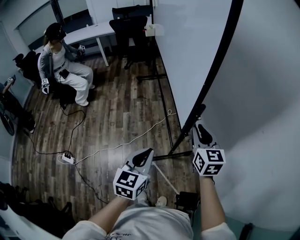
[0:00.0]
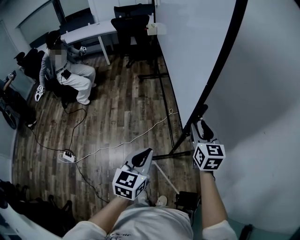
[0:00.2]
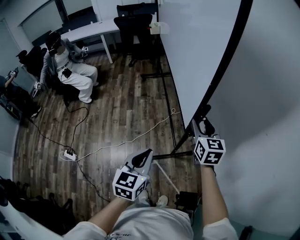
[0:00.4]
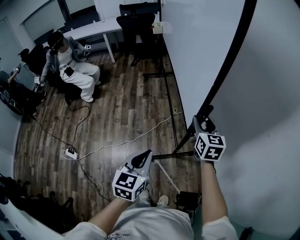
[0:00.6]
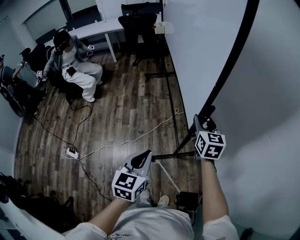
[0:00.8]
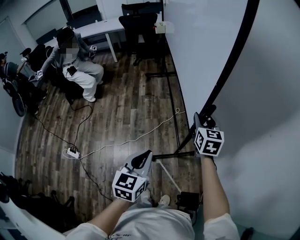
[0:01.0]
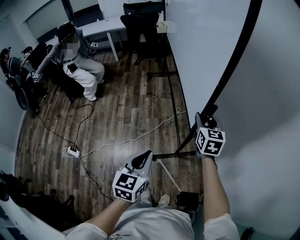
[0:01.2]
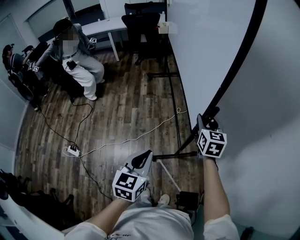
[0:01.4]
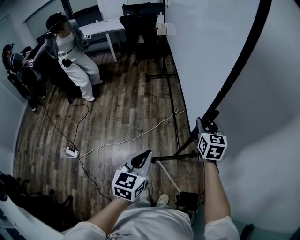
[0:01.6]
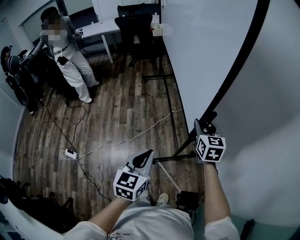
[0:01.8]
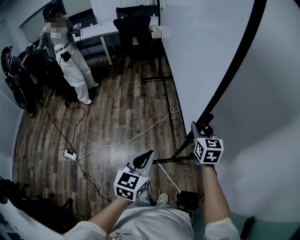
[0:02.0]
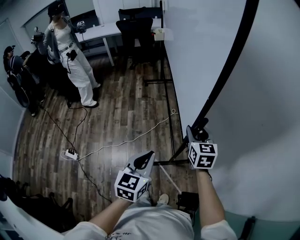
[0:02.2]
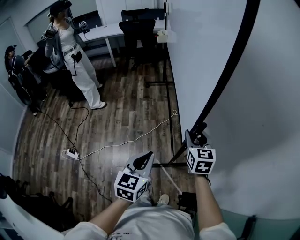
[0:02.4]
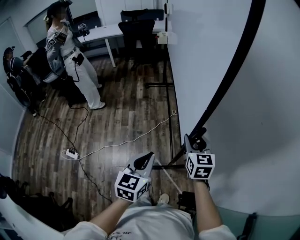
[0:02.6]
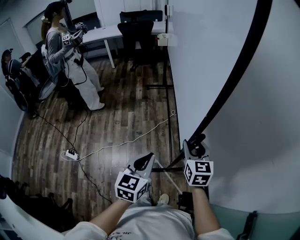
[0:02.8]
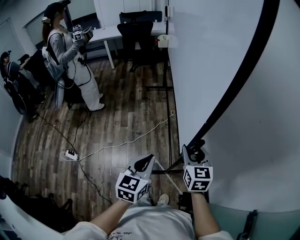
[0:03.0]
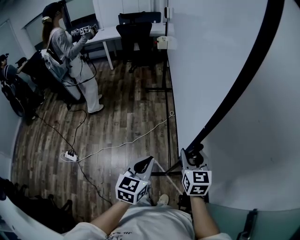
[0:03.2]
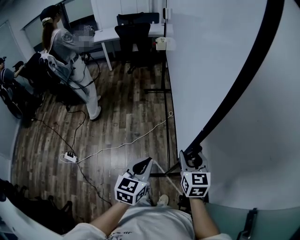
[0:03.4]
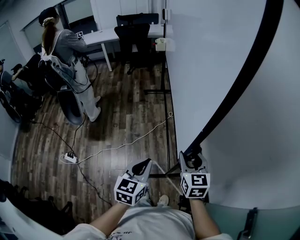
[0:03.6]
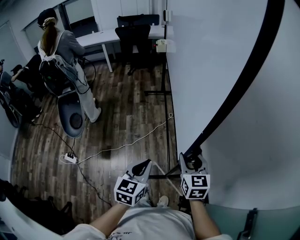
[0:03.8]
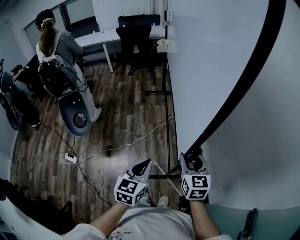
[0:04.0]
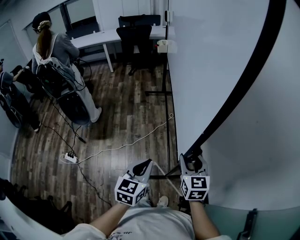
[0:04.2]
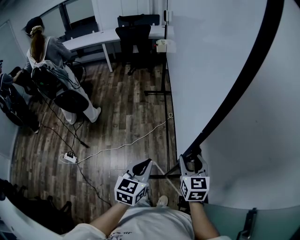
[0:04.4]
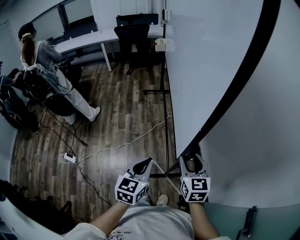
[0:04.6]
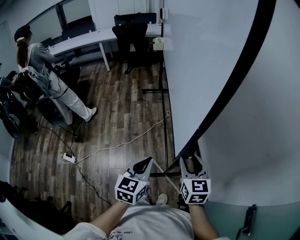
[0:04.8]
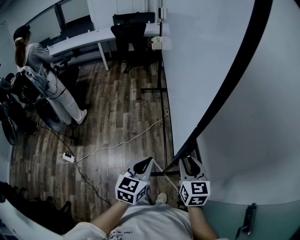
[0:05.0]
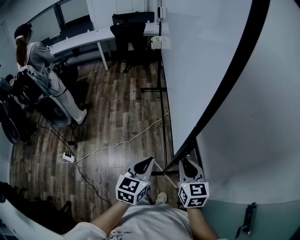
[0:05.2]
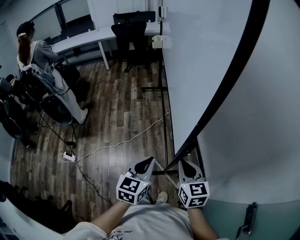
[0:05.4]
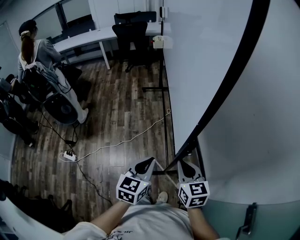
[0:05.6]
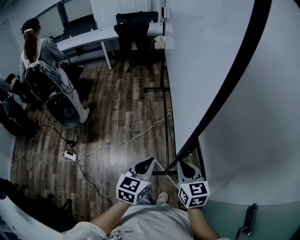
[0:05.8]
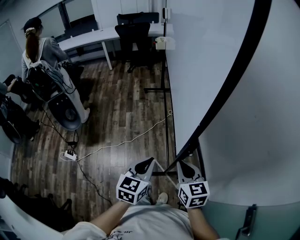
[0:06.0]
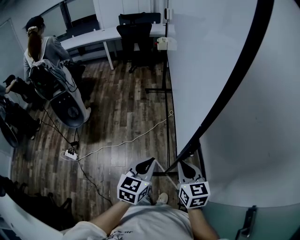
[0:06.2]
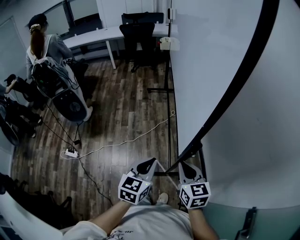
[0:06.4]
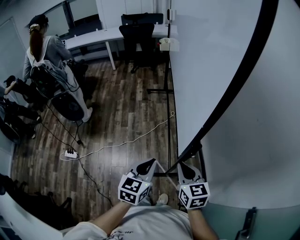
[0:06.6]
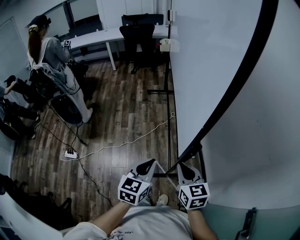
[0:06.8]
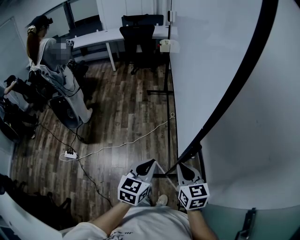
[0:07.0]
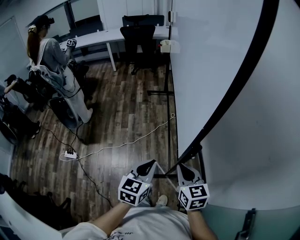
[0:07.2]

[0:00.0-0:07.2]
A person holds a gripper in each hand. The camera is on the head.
0.0 to 1.4 s: The right gripper moves forward, about 5 cm, and opens.
1.4 to 2.8 s: The right gripper is displaced backward by some 20 cm. Meanwhile the left gripper is displaced backward by roughly 10 cm.
2.8 to 4.4 s: The right gripper goes approximately 5 cm backward.
4.4 to 5.8 s: The right gripper moves backward, approximately 5 cm, and closes.
5.8 to 7.2 s: The two grippers keep their place.

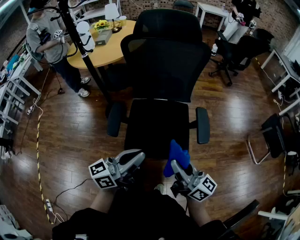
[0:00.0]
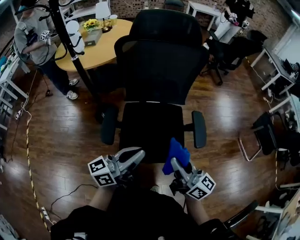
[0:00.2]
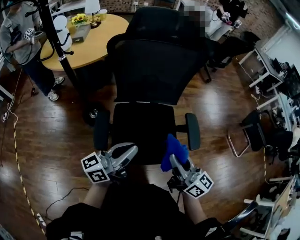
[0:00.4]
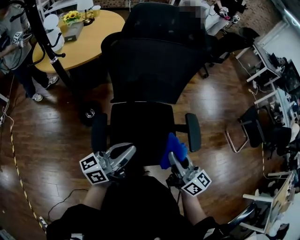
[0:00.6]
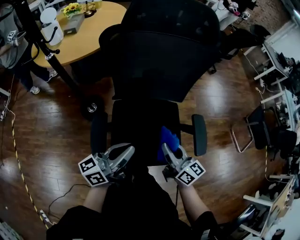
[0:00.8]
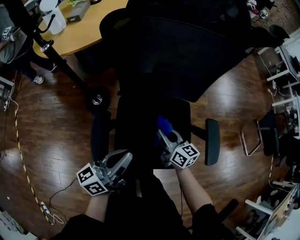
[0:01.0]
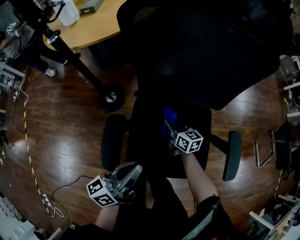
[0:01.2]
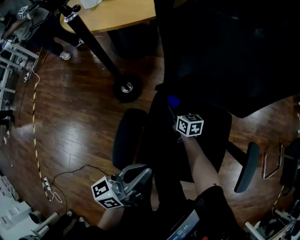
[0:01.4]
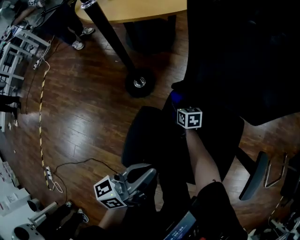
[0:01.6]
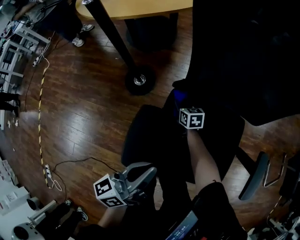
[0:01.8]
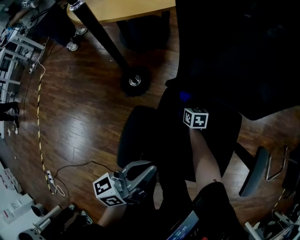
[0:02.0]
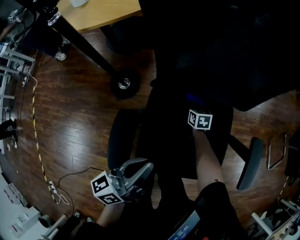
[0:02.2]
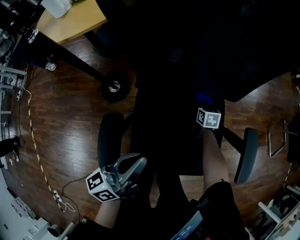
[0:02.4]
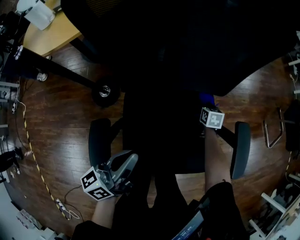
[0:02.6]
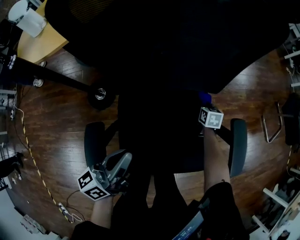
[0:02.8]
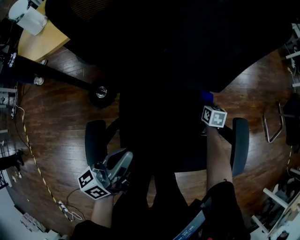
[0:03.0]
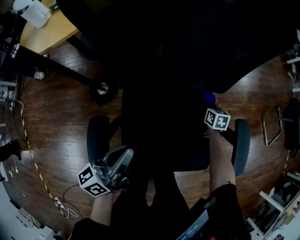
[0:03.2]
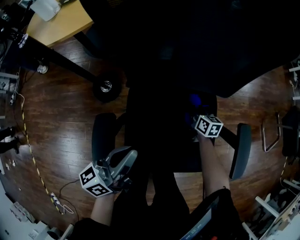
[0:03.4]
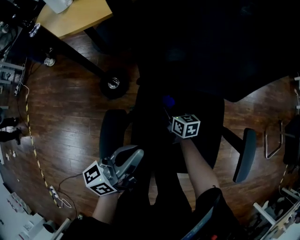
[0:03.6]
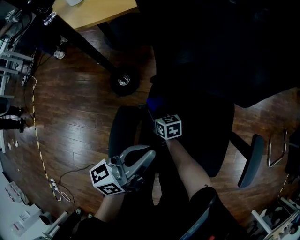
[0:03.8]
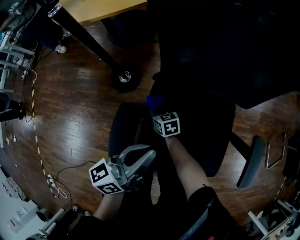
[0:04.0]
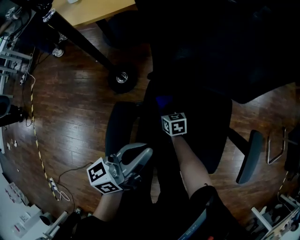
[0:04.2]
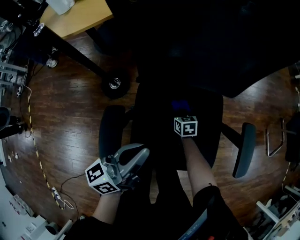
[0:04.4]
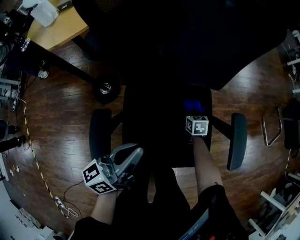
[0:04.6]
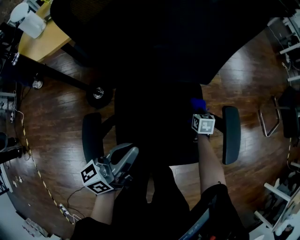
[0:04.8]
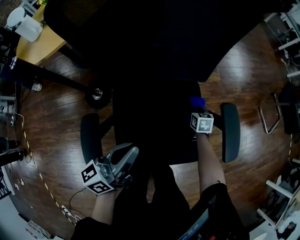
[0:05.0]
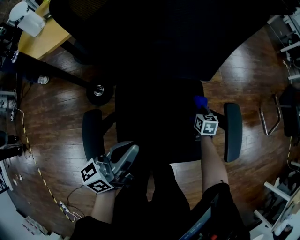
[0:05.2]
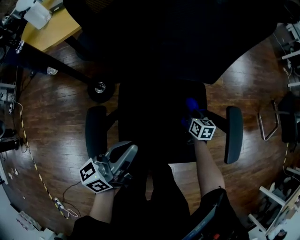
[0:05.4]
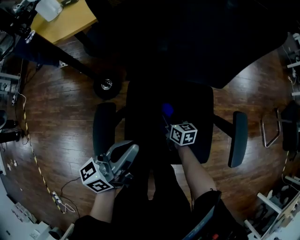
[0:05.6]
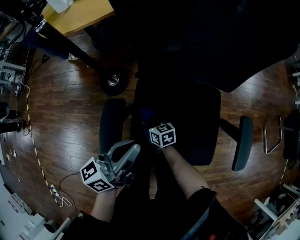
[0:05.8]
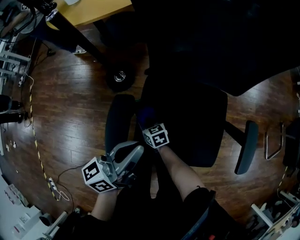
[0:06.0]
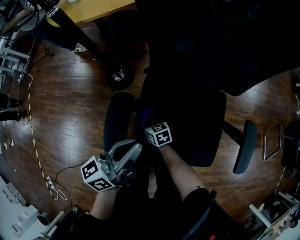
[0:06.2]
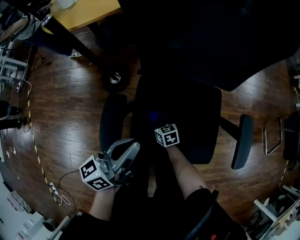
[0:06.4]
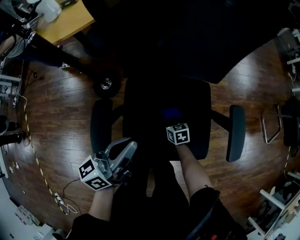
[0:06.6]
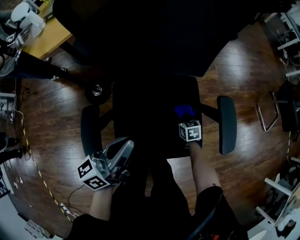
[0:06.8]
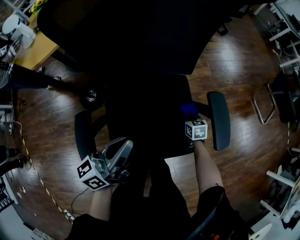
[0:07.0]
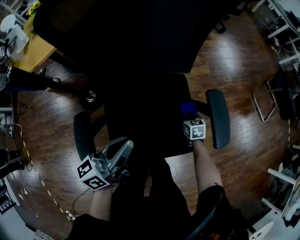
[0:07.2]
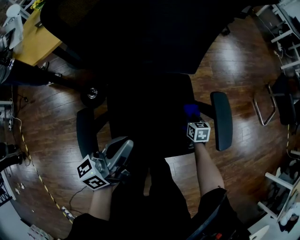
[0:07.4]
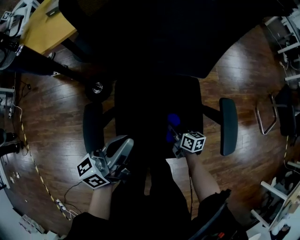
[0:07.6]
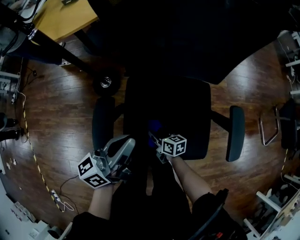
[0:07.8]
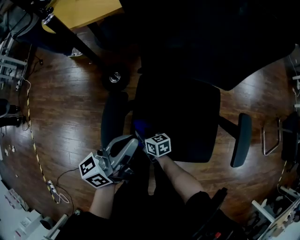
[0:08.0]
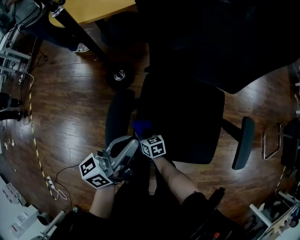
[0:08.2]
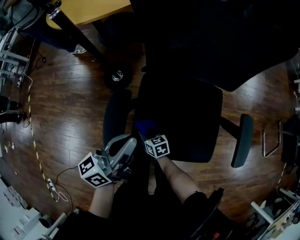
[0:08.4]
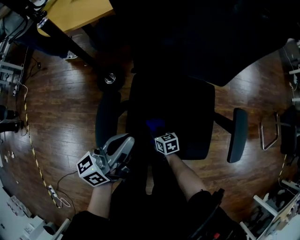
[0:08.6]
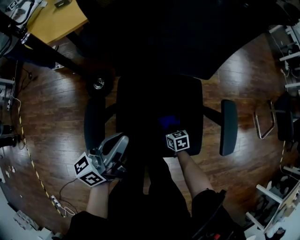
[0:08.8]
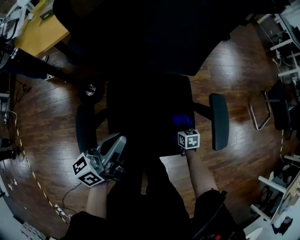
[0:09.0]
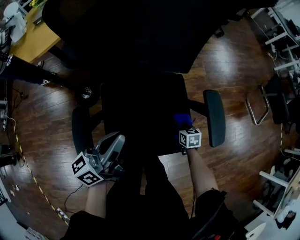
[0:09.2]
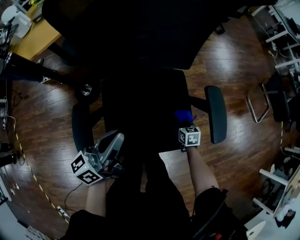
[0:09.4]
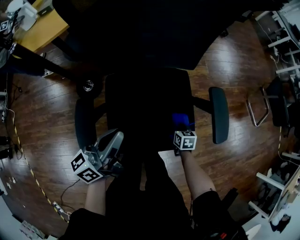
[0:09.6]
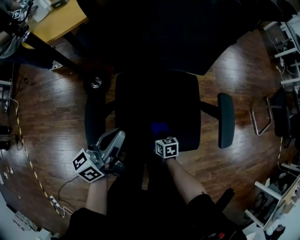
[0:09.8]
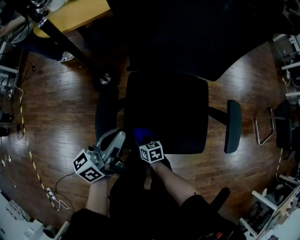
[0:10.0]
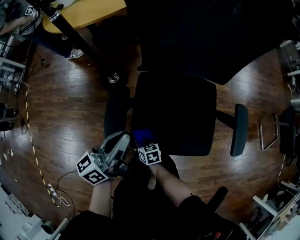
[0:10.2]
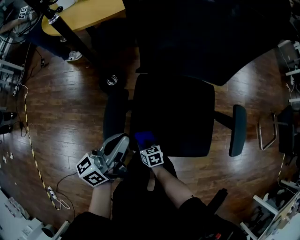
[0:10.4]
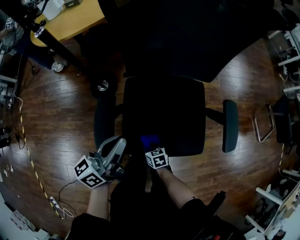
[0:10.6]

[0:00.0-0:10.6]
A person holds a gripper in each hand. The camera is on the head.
0.0 to 1.6 s: The right gripper shifts by approximately 70 cm, and points its fingers some 50 degrees further downward. Meanwhile the left gripper shifts by roughly 30 cm, and swivels approximately 30 degrees.
1.6 to 3.0 s: The right gripper changes place by about 40 cm, and rotates some 40 degrees, while the left gripper ends up approximately 10 cm from where it was.
3.0 to 4.6 s: The right gripper goes approximately 10 cm backward, and travels to the left and back again, about 40 cm each way.
4.6 to 6.0 s: The left gripper moves roughly 5 cm; the right gripper moves about 35 cm, and changes its angle by roughly 30 degrees.
6.0 to 7.6 s: The right gripper ends up approximately 30 cm from where it was, and rotates roughly 40 degrees.
7.6 to 9.0 s: The left gripper moves about 10 cm to the left and comes back, while the right gripper heads downward, covering approximately 5 cm, reaches some 30 cm to the left, then returns, and rotates about 30 degrees.
9.0 to 10.6 s: The left gripper ends up about 10 cm from where it was. Meanwhile the right gripper shifts by about 25 cm.

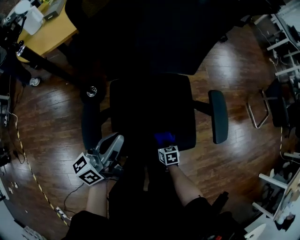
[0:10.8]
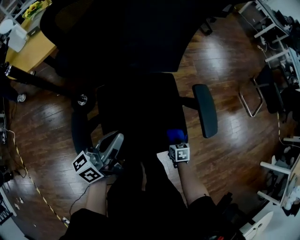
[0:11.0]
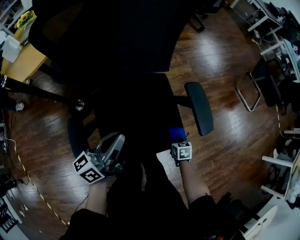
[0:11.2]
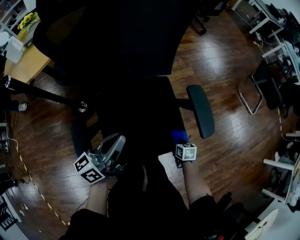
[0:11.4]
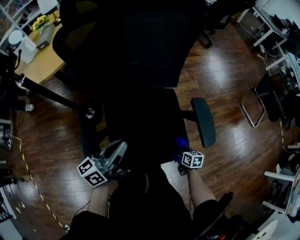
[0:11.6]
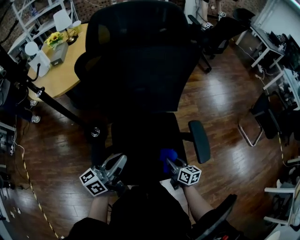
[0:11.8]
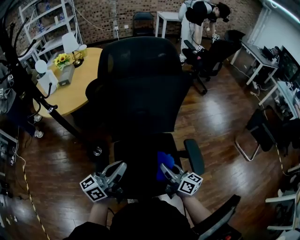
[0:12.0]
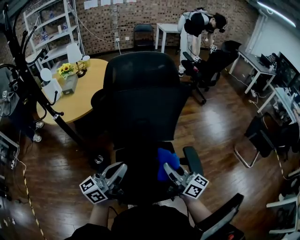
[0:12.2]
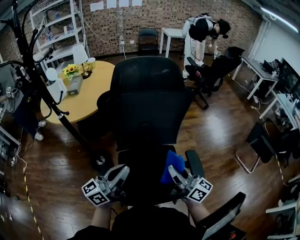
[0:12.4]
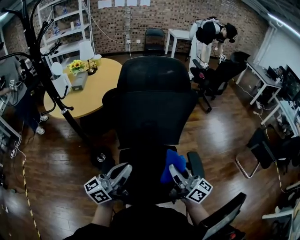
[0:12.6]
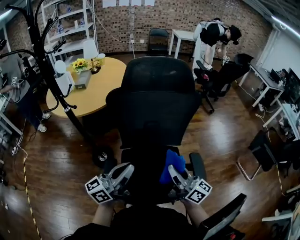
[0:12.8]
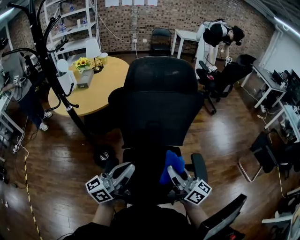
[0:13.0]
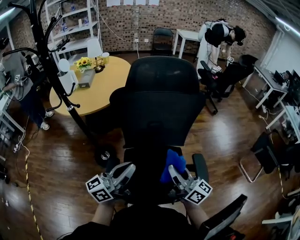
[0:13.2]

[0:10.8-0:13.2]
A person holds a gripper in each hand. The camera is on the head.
10.8 to 12.0 s: The left gripper goes some 15 cm upward. Meanwhile the right gripper travels upward by about 40 cm, and tilts its fingers some 60 degrees upward.
12.0 to 13.2 s: The left gripper goes roughly 5 cm upward; the right gripper is displaced upward by some 15 cm.

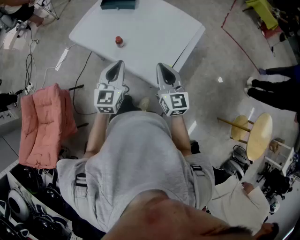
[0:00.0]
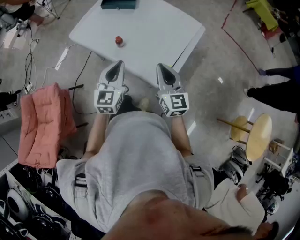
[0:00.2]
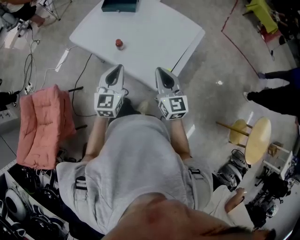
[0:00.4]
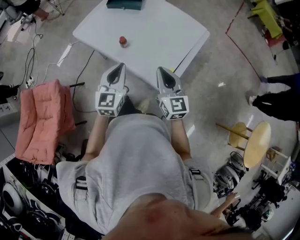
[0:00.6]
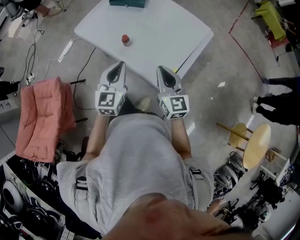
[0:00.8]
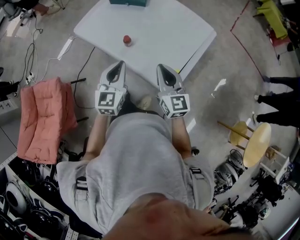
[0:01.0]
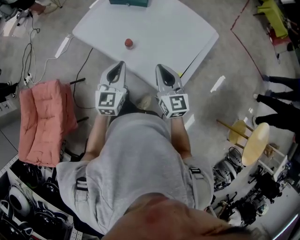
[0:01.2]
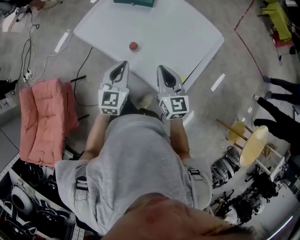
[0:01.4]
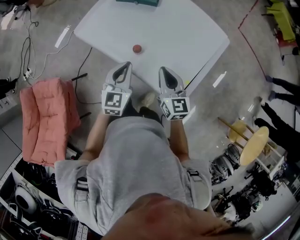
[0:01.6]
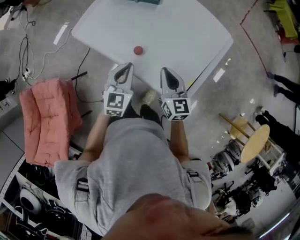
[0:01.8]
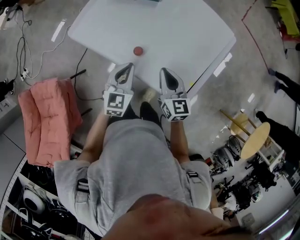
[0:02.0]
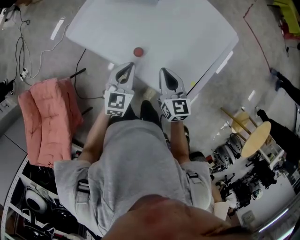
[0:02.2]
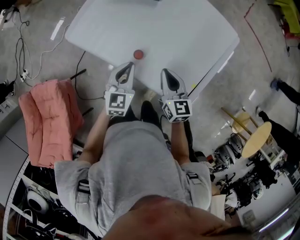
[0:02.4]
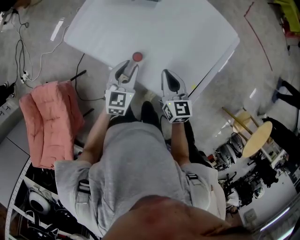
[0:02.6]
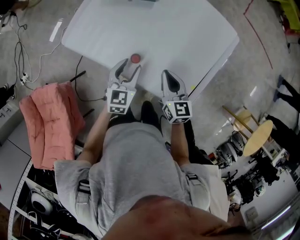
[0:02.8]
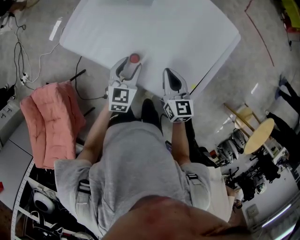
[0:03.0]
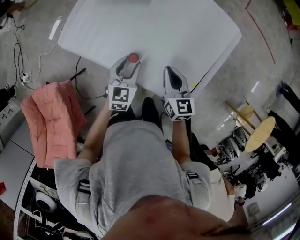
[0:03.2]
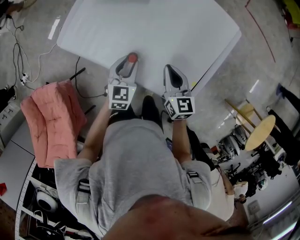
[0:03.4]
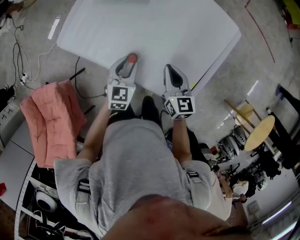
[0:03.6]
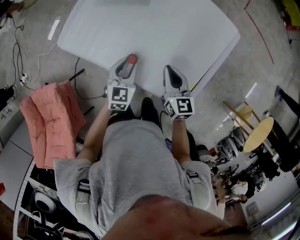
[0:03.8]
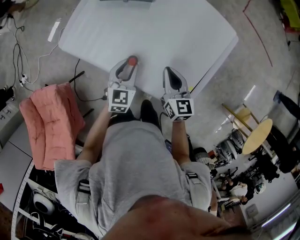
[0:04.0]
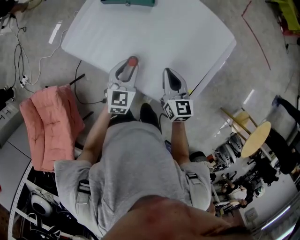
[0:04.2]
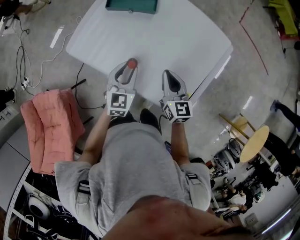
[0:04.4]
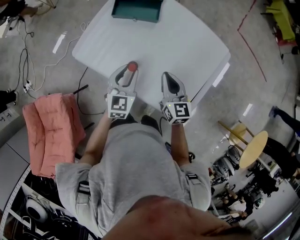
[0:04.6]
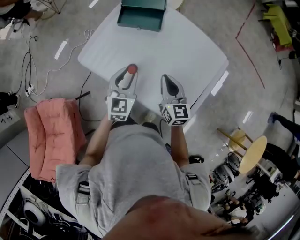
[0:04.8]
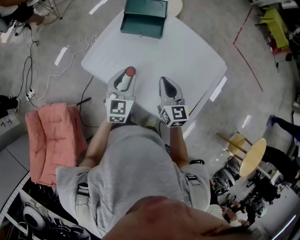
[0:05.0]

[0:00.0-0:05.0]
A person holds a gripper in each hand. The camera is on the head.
0.0 to 1.6 s: The left gripper travels forward, downward and to the left by about 15 cm. Meanwhile the right gripper travels forward, to the left and downward by some 15 cm.
1.6 to 3.4 s: The two grippers go roughly 15 cm downward and forward. The left gripper opens.
3.4 to 5.0 s: Both grippers travel together upward and to the left, roughly 15 cm.
